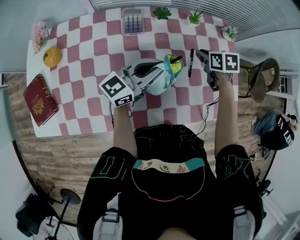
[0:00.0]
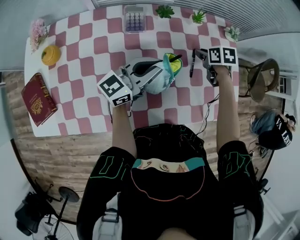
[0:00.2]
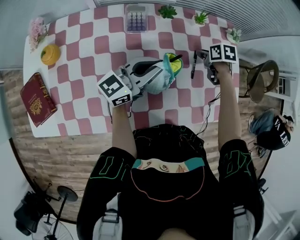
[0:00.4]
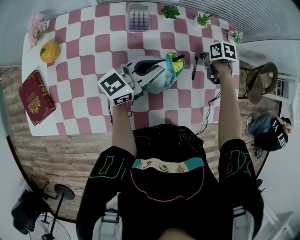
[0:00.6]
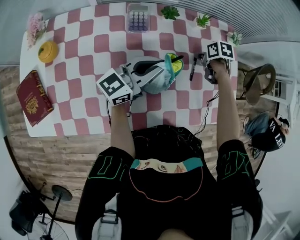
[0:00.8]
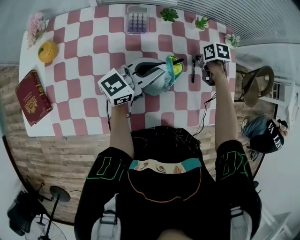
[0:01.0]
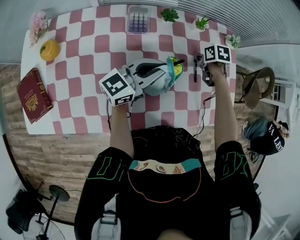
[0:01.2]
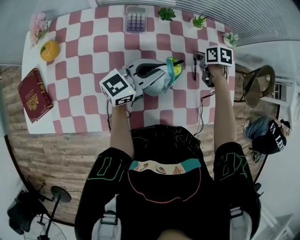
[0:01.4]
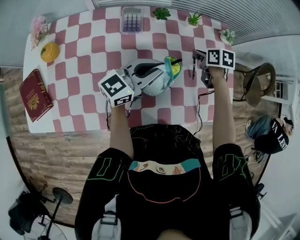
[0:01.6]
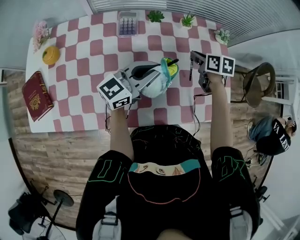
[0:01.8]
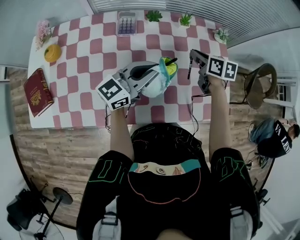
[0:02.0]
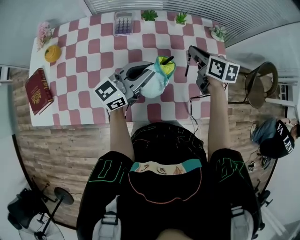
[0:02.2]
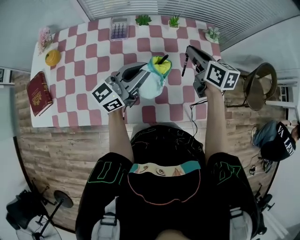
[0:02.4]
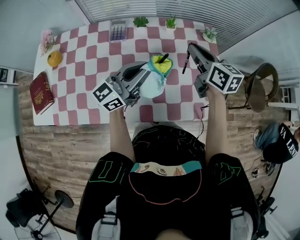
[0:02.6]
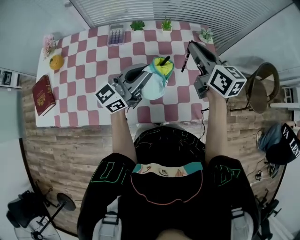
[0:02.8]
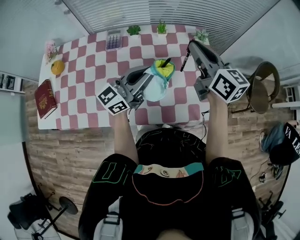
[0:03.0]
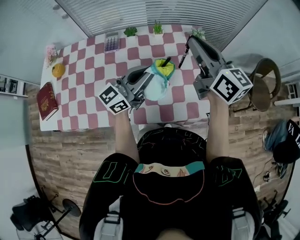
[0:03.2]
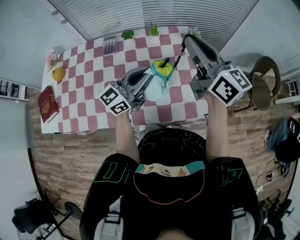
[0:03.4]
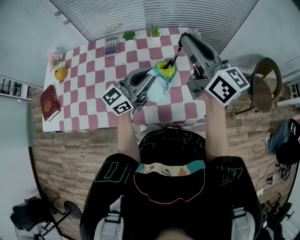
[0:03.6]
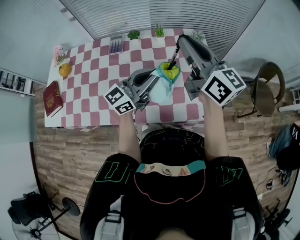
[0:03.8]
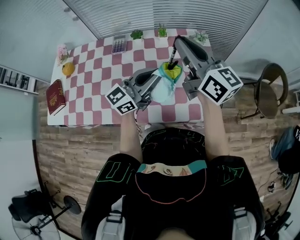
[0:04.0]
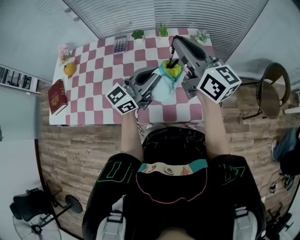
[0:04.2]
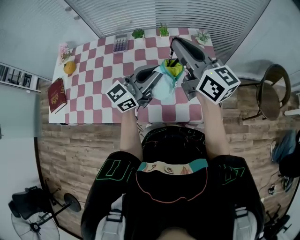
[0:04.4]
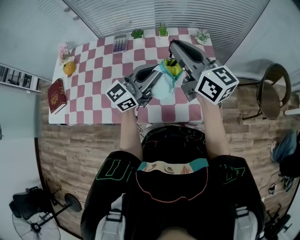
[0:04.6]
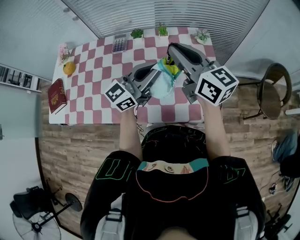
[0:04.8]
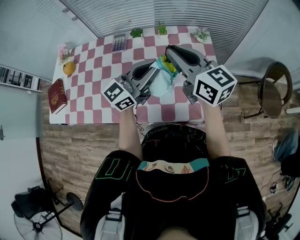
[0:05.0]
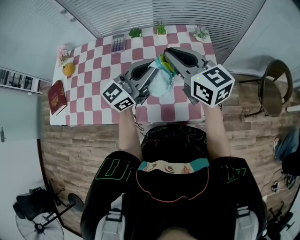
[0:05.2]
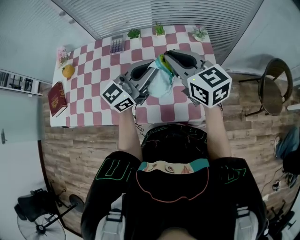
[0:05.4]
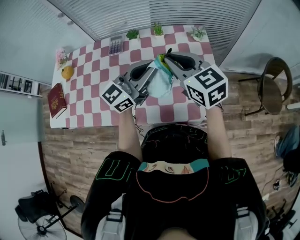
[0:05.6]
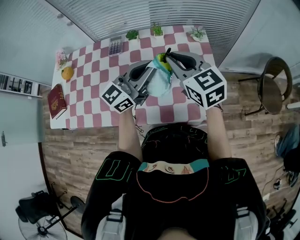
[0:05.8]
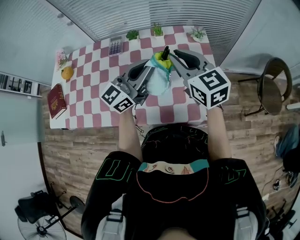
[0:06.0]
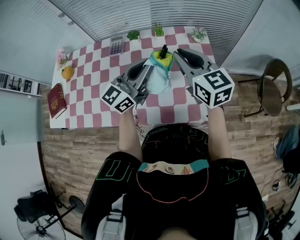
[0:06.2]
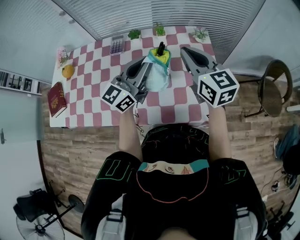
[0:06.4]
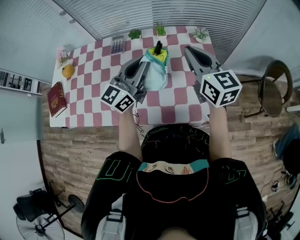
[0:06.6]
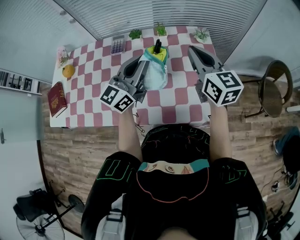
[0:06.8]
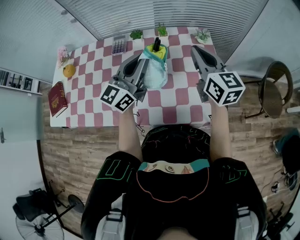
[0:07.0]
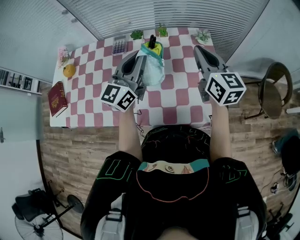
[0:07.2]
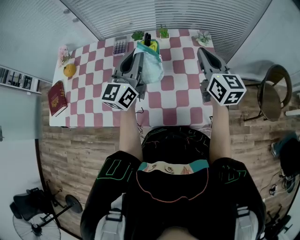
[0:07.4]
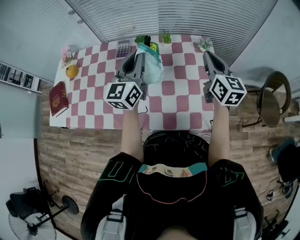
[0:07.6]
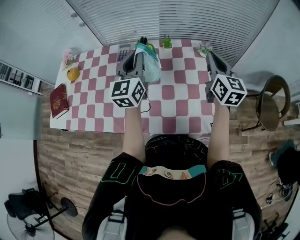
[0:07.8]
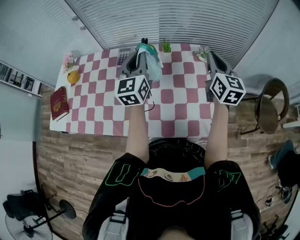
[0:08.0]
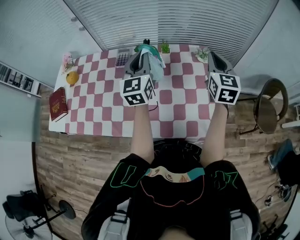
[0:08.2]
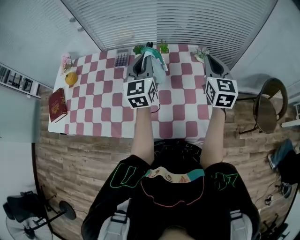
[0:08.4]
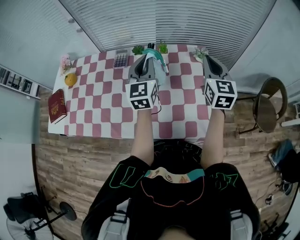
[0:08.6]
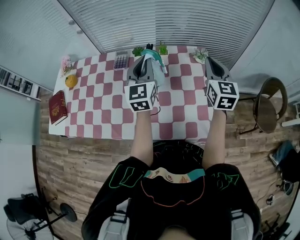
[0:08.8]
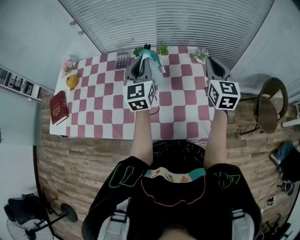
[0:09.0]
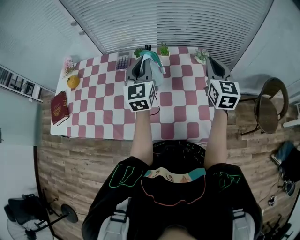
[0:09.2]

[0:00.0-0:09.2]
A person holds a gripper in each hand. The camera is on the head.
1.6 to 3.0 s: The left gripper is displaced to the right and upward by about 15 cm; the right gripper goes roughly 25 cm upward, and points its fingers some 50 degrees further upward.
3.0 to 4.6 s: The left gripper travels to the right by roughly 5 cm.
4.6 to 6.2 s: The right gripper travels downward by about 5 cm, and turns by some 20 degrees.
6.2 to 7.6 s: The left gripper travels to the left by approximately 5 cm, and changes its angle by roughly 30 degrees; the right gripper shifts some 10 cm to the right and forward.
7.6 to 9.2 s: The grippers stay close to where they were, moving slightly.

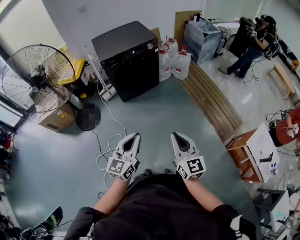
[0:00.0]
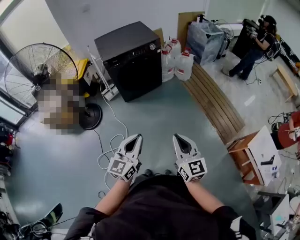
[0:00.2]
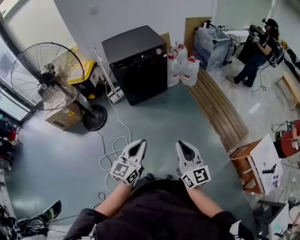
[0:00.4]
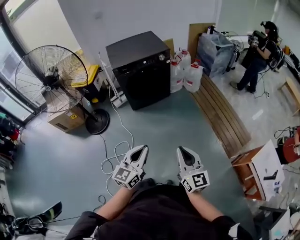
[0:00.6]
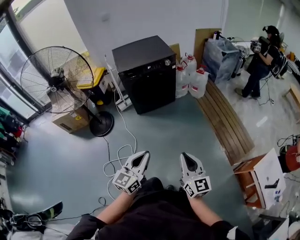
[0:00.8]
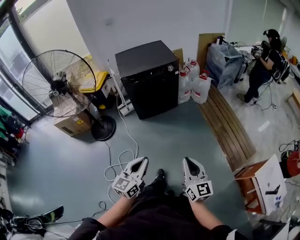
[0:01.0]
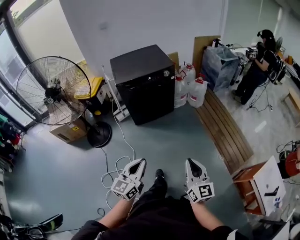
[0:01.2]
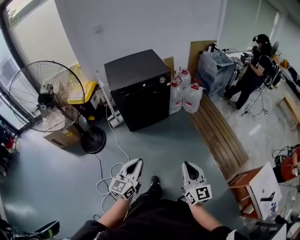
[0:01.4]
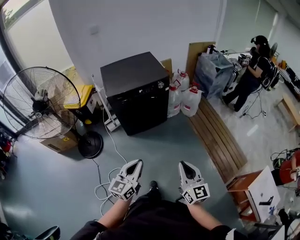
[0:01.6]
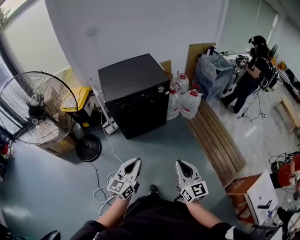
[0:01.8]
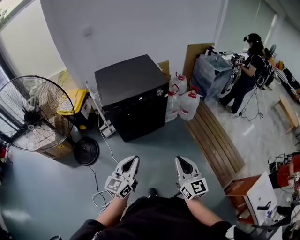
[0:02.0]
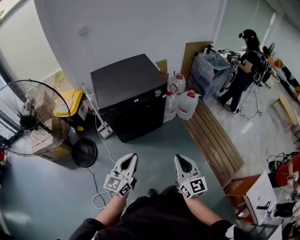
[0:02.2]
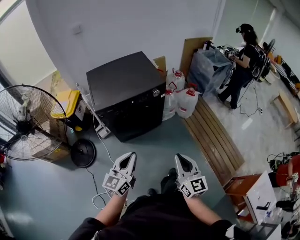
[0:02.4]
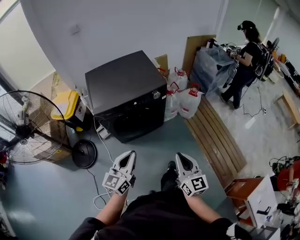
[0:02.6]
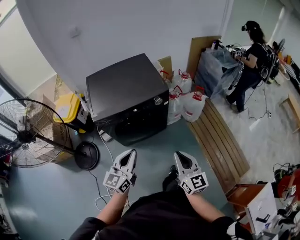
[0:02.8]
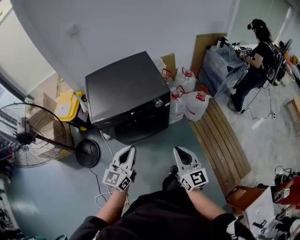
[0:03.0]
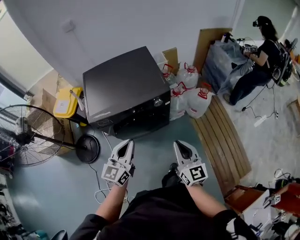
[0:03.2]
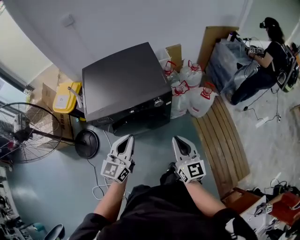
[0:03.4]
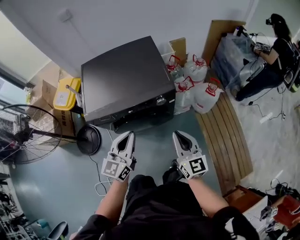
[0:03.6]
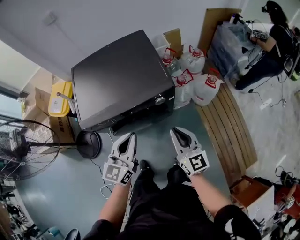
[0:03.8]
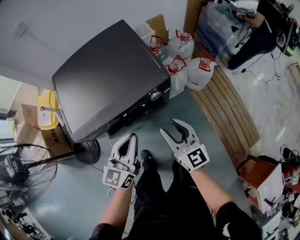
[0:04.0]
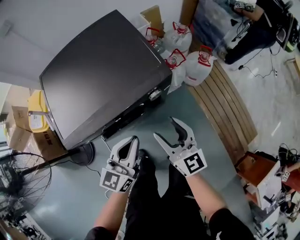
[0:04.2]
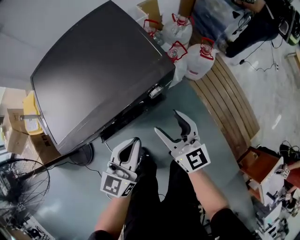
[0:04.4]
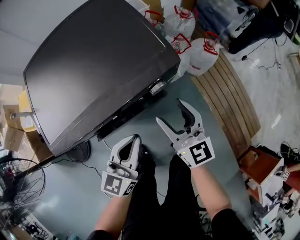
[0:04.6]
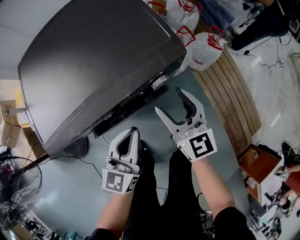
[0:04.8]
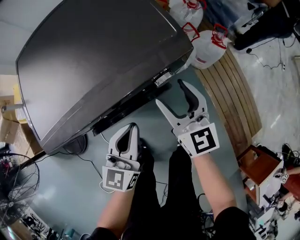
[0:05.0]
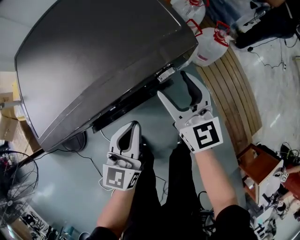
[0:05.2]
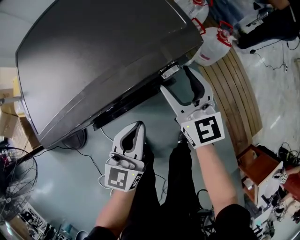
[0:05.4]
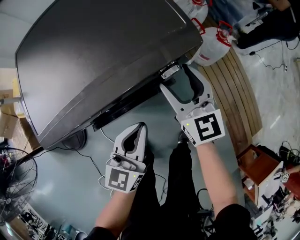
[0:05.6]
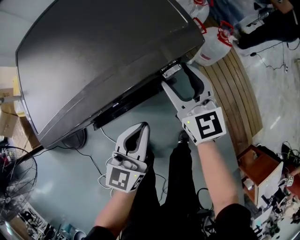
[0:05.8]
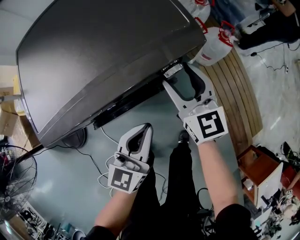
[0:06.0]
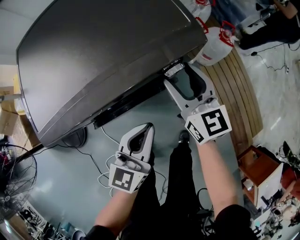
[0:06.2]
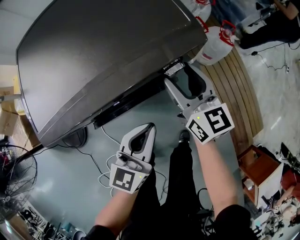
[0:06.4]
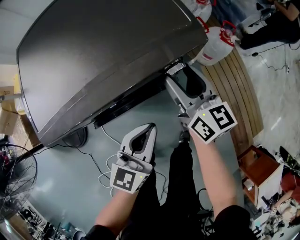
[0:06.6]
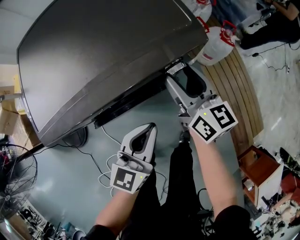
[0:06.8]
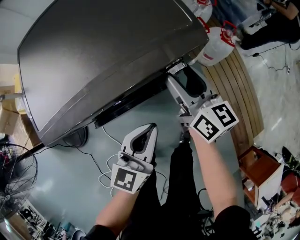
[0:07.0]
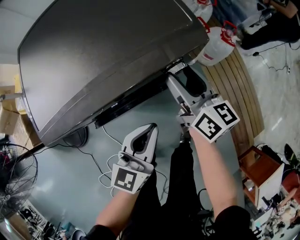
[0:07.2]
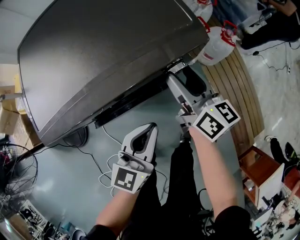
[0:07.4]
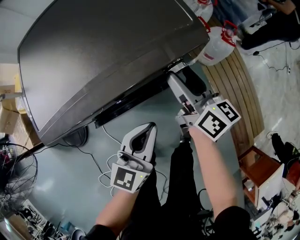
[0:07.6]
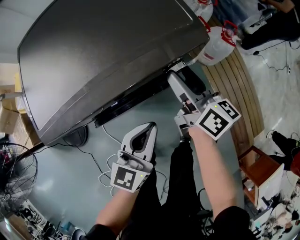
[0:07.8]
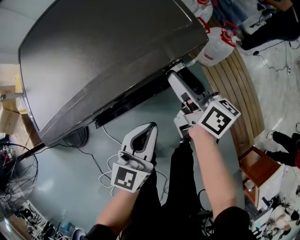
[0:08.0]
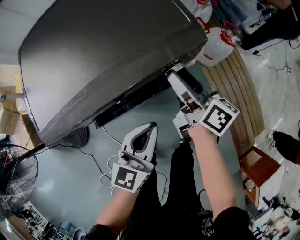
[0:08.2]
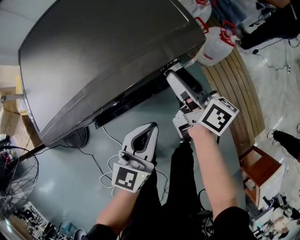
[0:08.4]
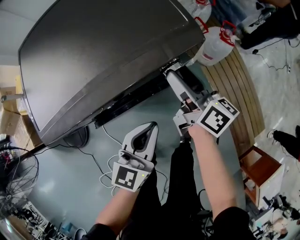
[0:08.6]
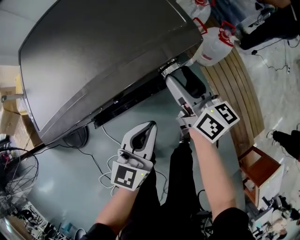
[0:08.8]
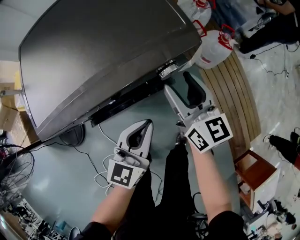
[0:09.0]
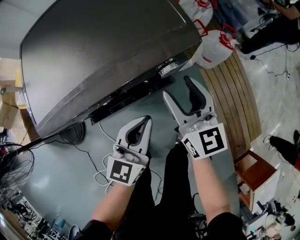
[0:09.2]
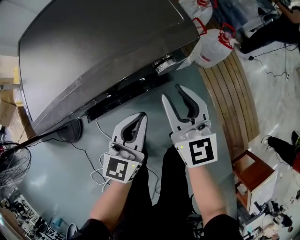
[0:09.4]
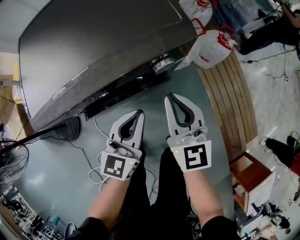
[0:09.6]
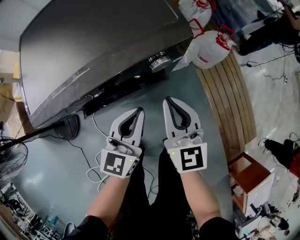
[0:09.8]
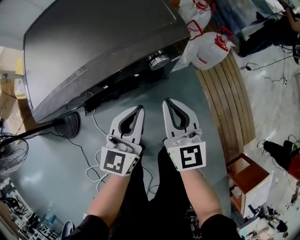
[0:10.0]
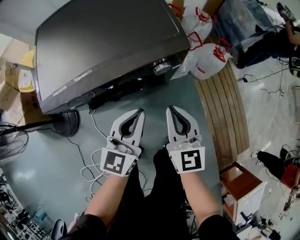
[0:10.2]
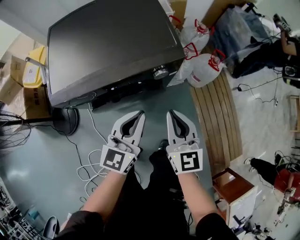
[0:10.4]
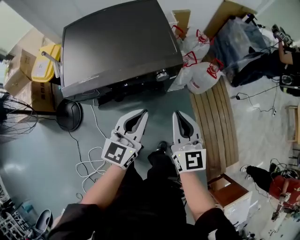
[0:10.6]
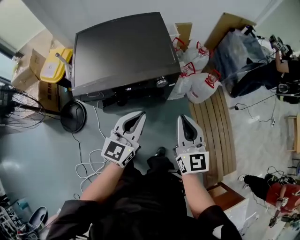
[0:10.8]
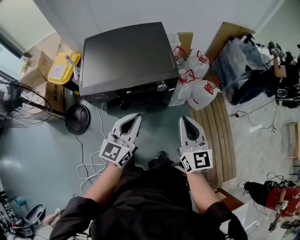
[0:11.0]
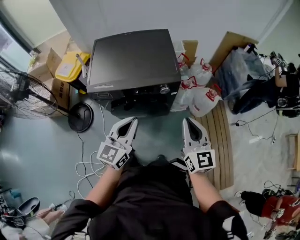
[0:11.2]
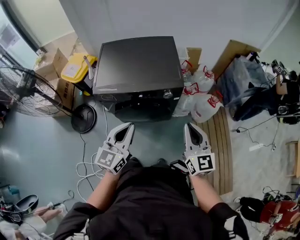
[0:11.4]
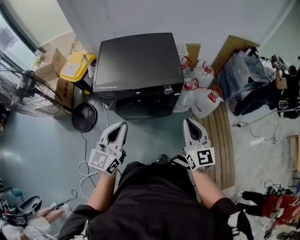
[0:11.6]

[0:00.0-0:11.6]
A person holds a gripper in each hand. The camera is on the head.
0.0 to 1.4 s: The two grippers go some 10 cm forward.
1.4 to 2.8 s: The grippers both shift forward by some 40 cm.
2.8 to 4.4 s: The grippers both shift forward and downward by approximately 35 cm. The right gripper opens.
4.4 to 5.8 s: The left gripper is displaced downward by some 10 cm. Meanwhile the right gripper travels forward and downward by some 10 cm.
5.8 to 7.2 s: The right gripper swivels about 30 degrees.
8.8 to 10.2 s: The left gripper heads upward, covering about 5 cm. Meanwhile the right gripper shifts approximately 15 cm backward, changes its angle by about 40 degrees, and closes.
10.2 to 11.6 s: The grippers both shift upward and backward by about 30 cm.

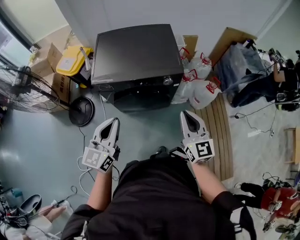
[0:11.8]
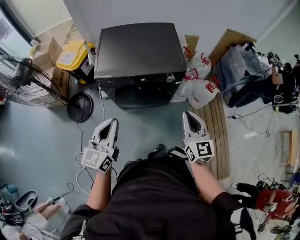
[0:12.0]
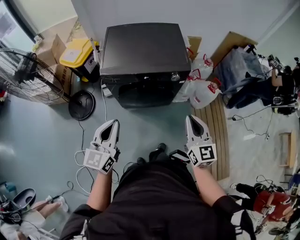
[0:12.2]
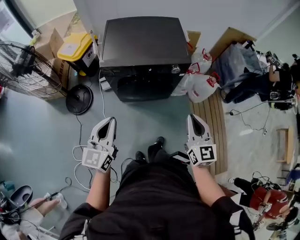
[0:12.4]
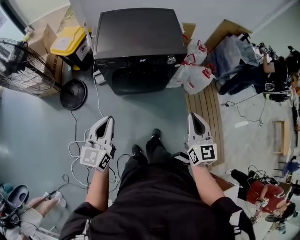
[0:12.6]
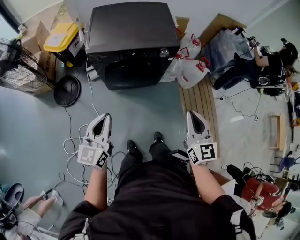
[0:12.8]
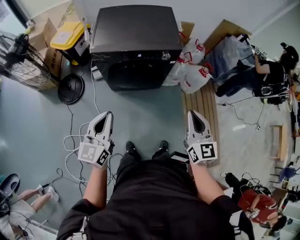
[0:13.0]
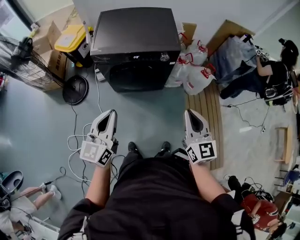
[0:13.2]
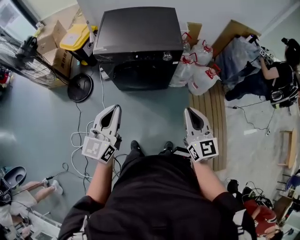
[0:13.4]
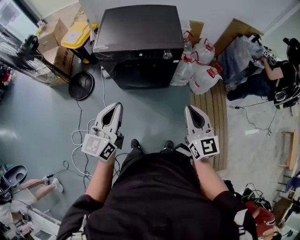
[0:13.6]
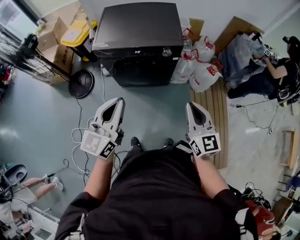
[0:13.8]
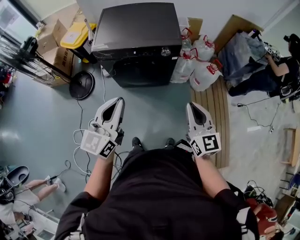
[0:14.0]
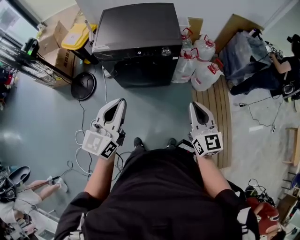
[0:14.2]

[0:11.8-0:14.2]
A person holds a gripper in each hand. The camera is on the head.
11.8 to 13.0 s: Both grippers move backward, approximately 15 cm.
13.0 to 14.2 s: The left gripper shifts about 15 cm to the right and upward. The right gripper travels to the right by approximately 5 cm.

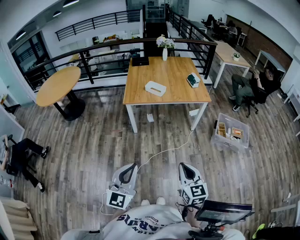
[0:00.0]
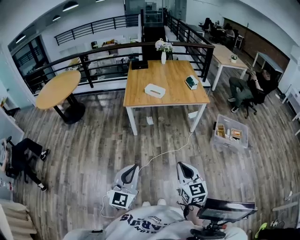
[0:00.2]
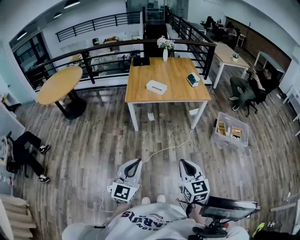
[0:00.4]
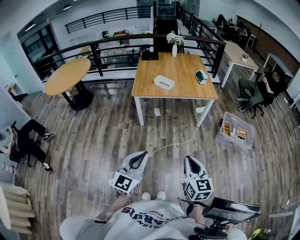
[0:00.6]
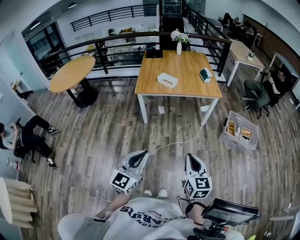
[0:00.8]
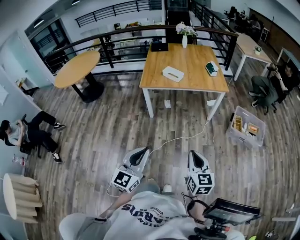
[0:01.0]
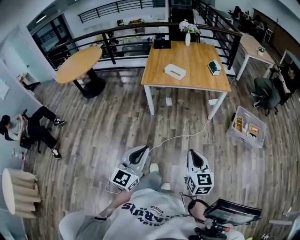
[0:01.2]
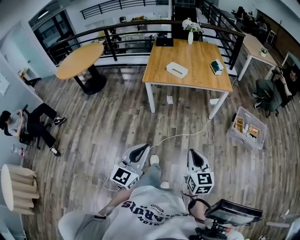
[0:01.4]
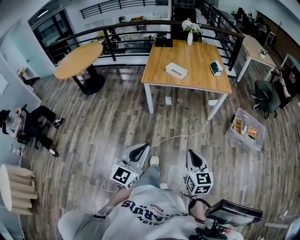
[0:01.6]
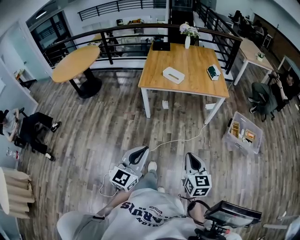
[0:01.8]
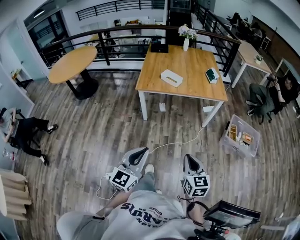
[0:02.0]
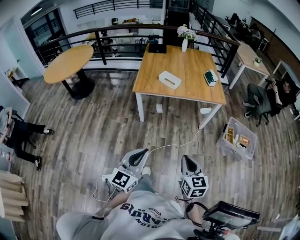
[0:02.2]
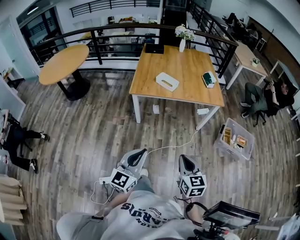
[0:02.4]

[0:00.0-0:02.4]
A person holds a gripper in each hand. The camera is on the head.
0.0 to 1.2 s: The left gripper changes place by some 5 cm.
1.2 to 2.4 s: Both grippers travel together forward, some 15 cm.
